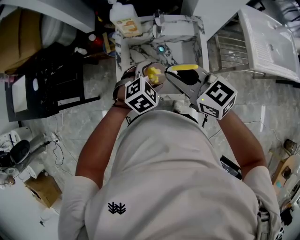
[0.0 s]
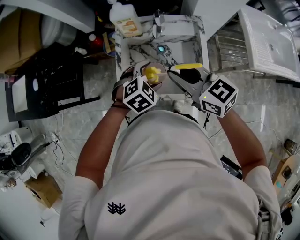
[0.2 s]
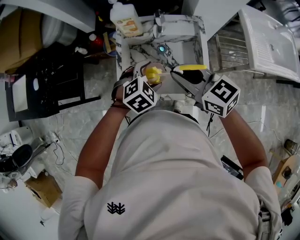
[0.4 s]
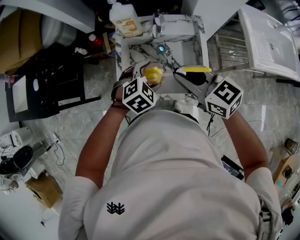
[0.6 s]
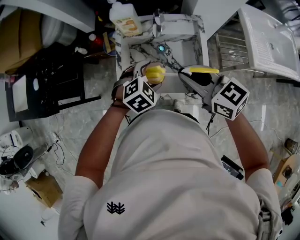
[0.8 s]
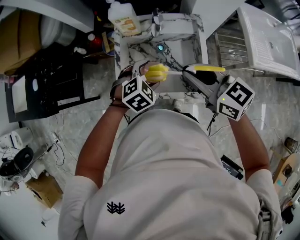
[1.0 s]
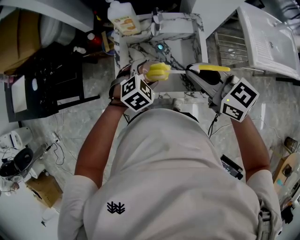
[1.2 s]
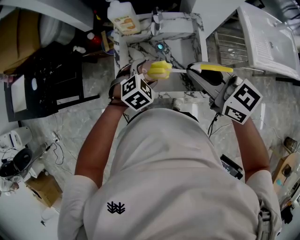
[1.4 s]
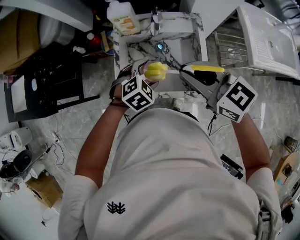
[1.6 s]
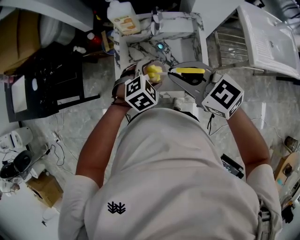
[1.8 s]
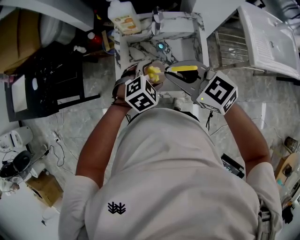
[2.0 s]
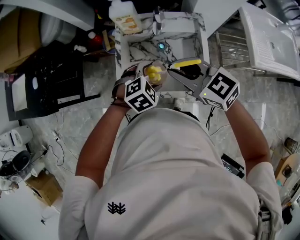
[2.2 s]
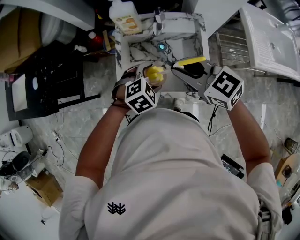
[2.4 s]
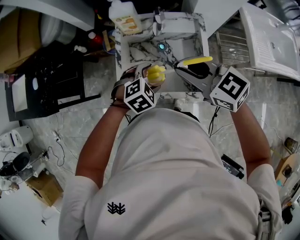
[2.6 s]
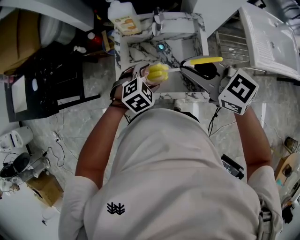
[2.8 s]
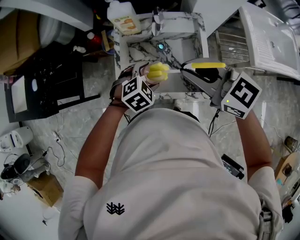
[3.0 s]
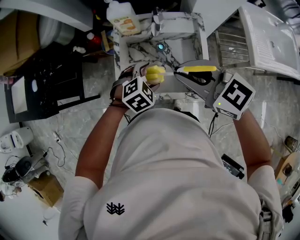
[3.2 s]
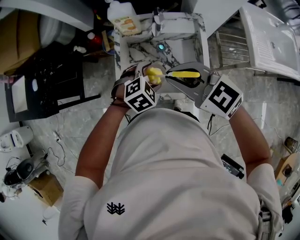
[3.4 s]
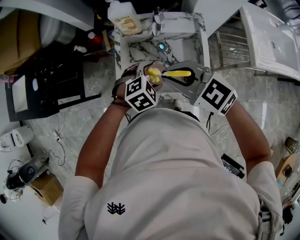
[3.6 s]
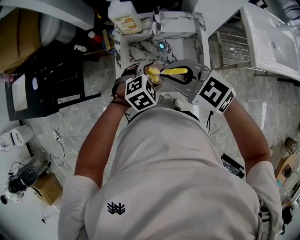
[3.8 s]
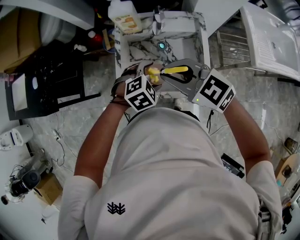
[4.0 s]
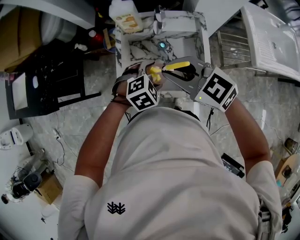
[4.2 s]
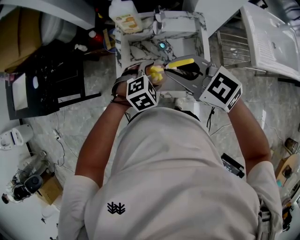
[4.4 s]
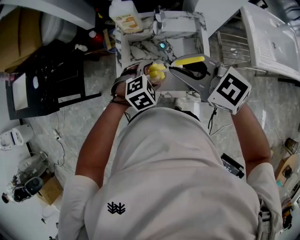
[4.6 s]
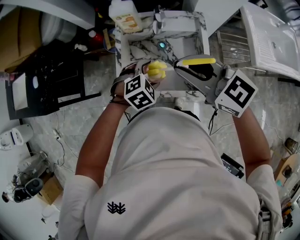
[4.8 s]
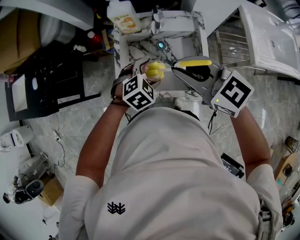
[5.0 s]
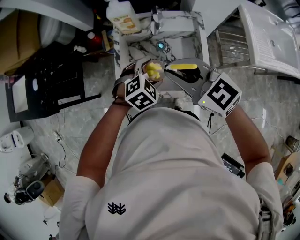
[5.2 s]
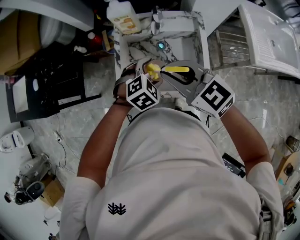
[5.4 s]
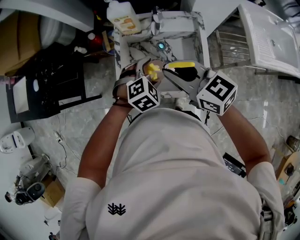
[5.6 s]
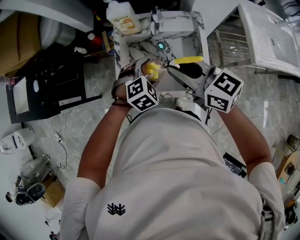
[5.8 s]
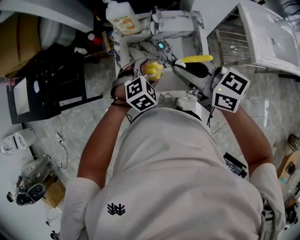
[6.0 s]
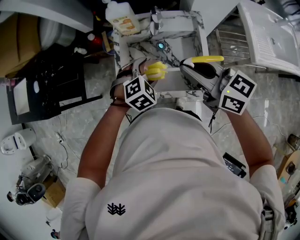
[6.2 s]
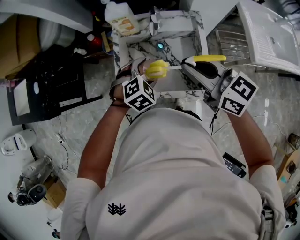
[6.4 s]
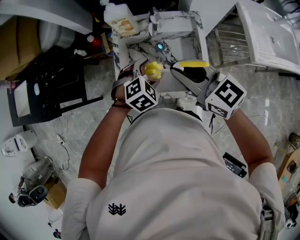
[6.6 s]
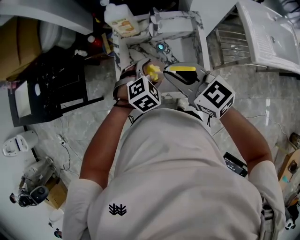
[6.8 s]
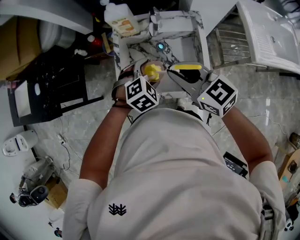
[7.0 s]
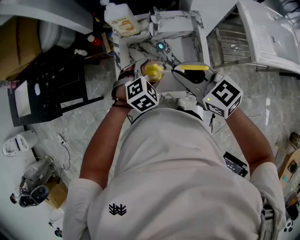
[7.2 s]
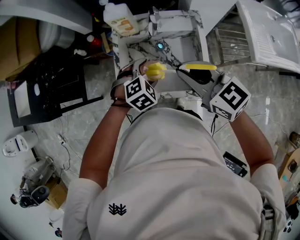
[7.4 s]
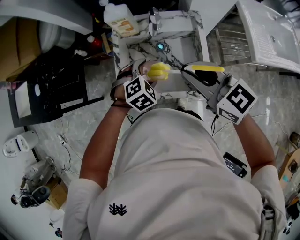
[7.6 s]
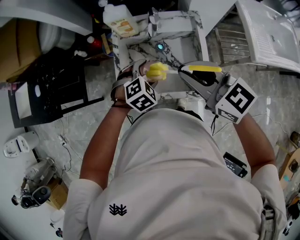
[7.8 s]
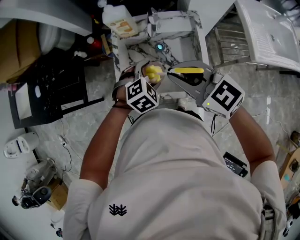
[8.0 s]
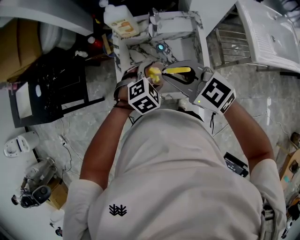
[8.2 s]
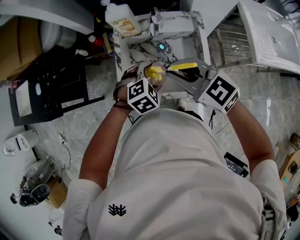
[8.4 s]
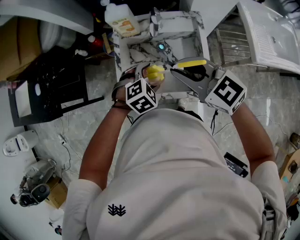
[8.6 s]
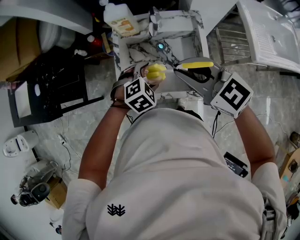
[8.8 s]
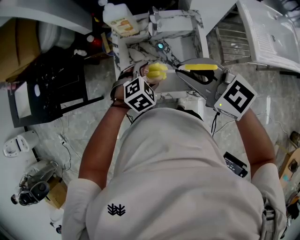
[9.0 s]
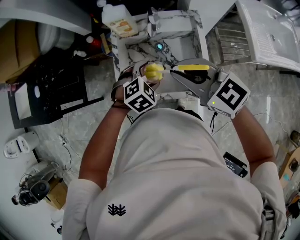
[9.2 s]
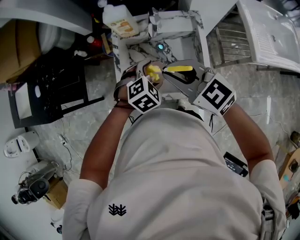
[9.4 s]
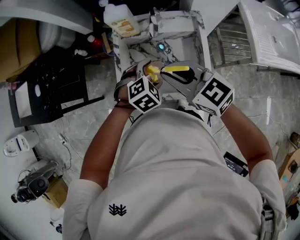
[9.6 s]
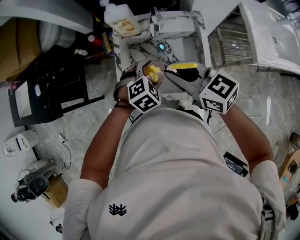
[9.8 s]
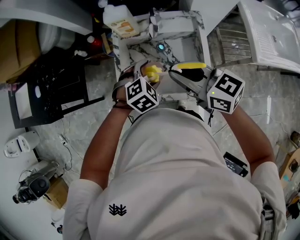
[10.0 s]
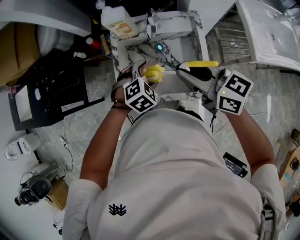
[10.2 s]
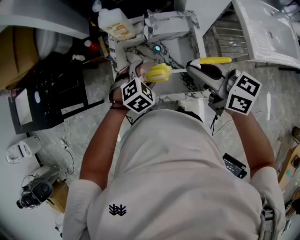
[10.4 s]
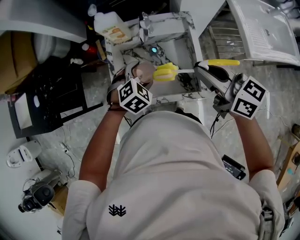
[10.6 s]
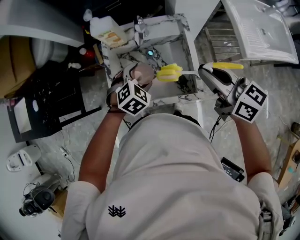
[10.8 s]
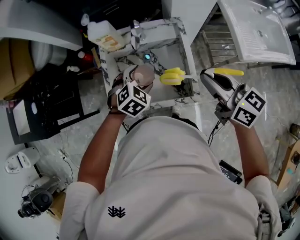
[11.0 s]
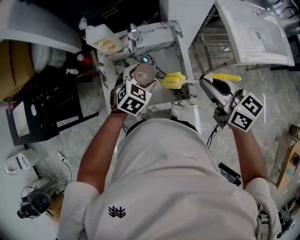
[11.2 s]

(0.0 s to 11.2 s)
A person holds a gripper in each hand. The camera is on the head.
0.0 s - 1.6 s: The right gripper shifts by approximately 5 cm.
1.6 s - 3.2 s: There are only small adjustments of the grippers.
3.2 s - 4.8 s: There are only small adjustments of the grippers.
4.8 s - 6.4 s: The right gripper turns by roughly 20 degrees.
6.4 s - 8.0 s: The right gripper swivels approximately 20 degrees.
8.0 s - 9.6 s: The grippers stay close to where they were, moving slightly.
9.6 s - 11.2 s: The left gripper travels to the right by some 5 cm; the right gripper heads to the right, covering approximately 20 cm, and turns by some 30 degrees.

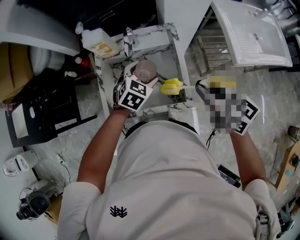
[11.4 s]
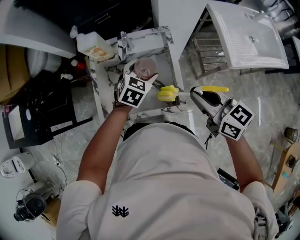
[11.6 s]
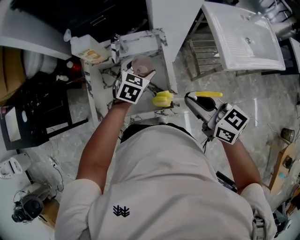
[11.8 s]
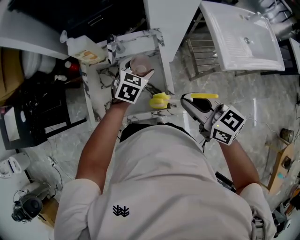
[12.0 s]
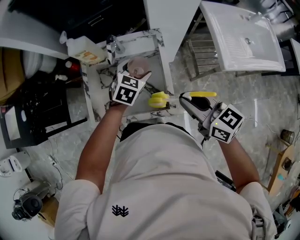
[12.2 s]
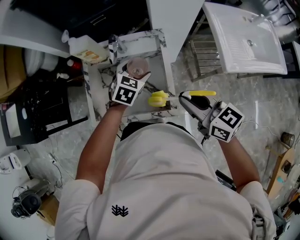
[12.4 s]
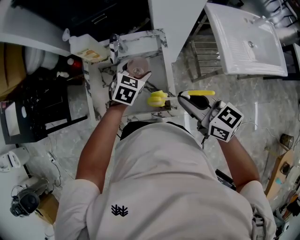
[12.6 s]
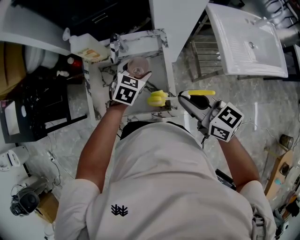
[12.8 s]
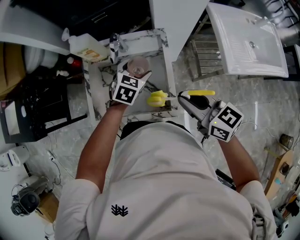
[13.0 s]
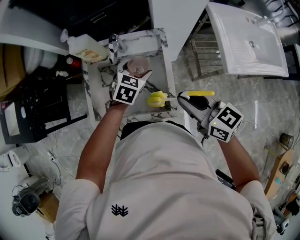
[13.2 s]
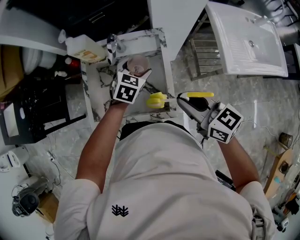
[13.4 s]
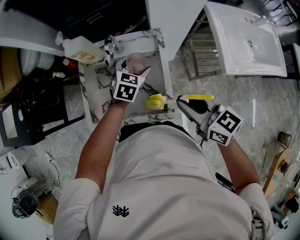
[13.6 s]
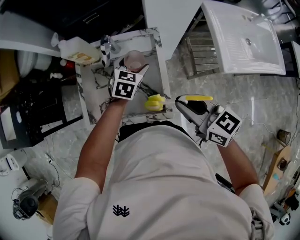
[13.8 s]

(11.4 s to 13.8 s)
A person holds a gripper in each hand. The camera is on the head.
11.4 s - 12.6 s: The left gripper shifts by about 5 cm.
12.6 s - 13.8 s: The grippers move only a little.

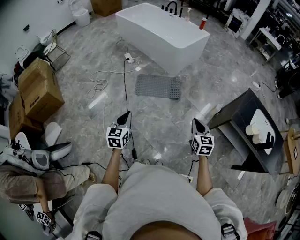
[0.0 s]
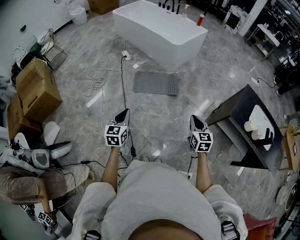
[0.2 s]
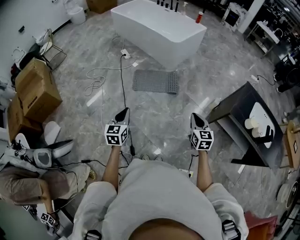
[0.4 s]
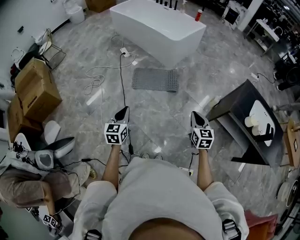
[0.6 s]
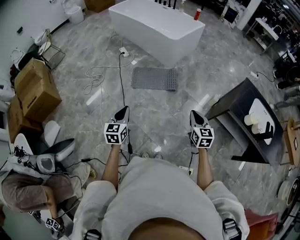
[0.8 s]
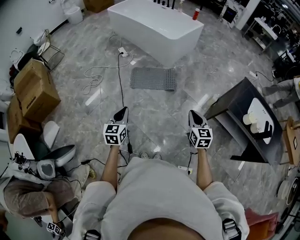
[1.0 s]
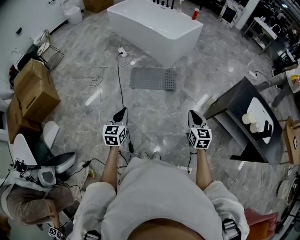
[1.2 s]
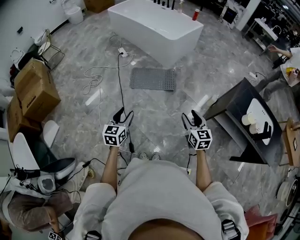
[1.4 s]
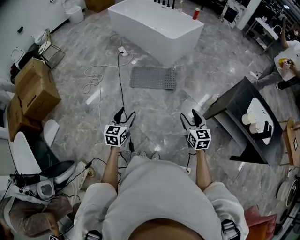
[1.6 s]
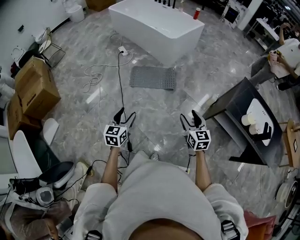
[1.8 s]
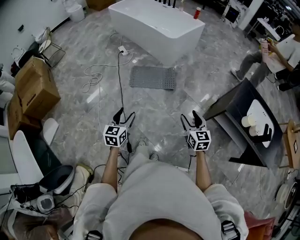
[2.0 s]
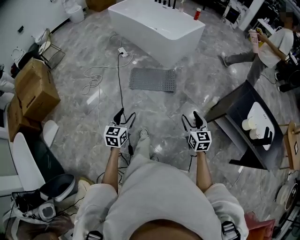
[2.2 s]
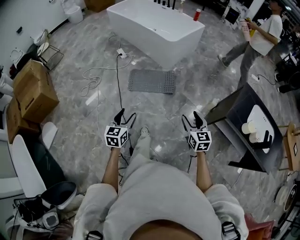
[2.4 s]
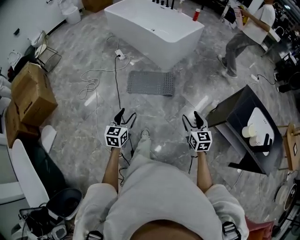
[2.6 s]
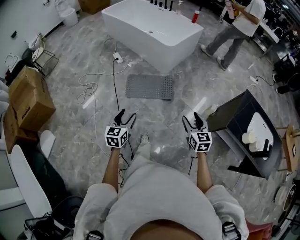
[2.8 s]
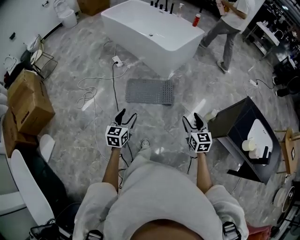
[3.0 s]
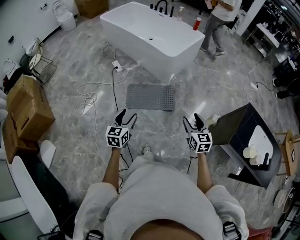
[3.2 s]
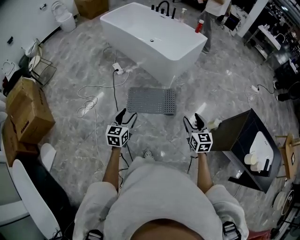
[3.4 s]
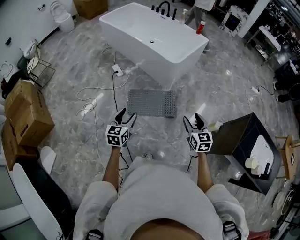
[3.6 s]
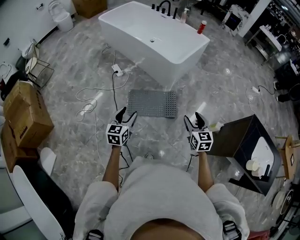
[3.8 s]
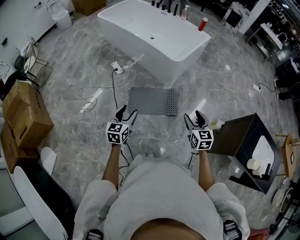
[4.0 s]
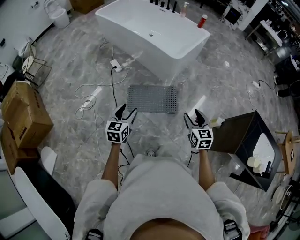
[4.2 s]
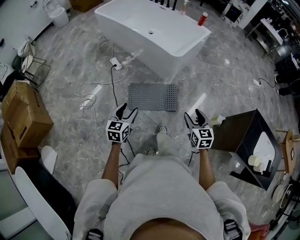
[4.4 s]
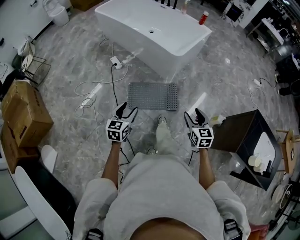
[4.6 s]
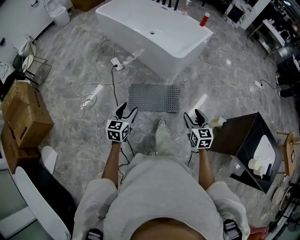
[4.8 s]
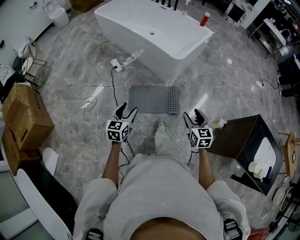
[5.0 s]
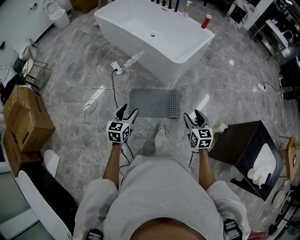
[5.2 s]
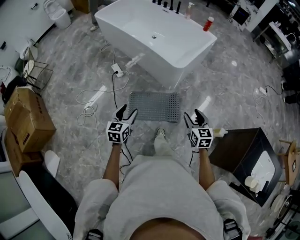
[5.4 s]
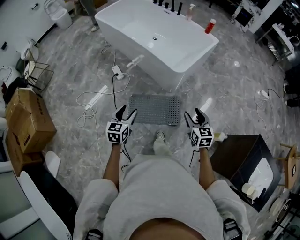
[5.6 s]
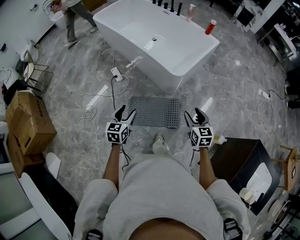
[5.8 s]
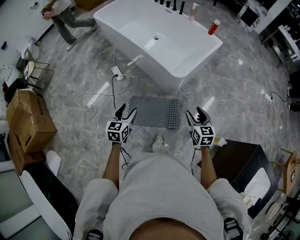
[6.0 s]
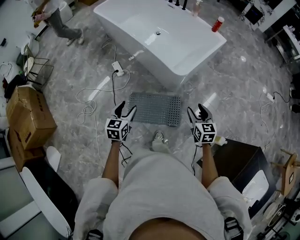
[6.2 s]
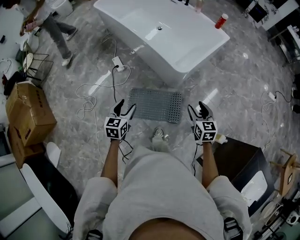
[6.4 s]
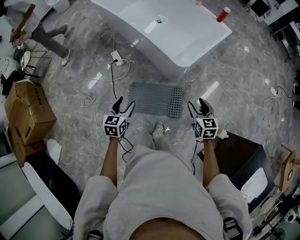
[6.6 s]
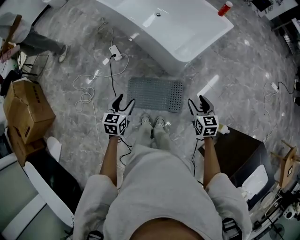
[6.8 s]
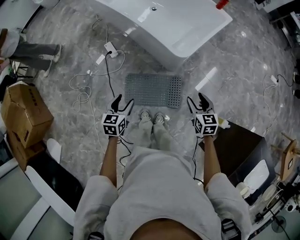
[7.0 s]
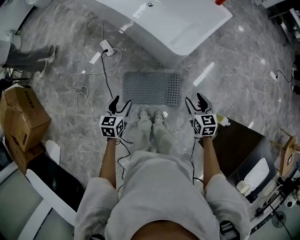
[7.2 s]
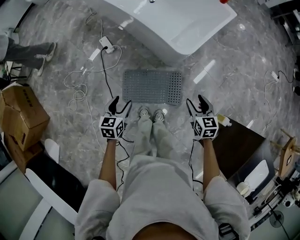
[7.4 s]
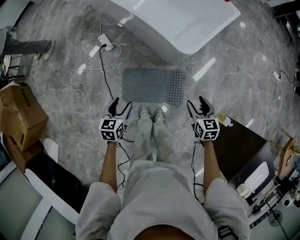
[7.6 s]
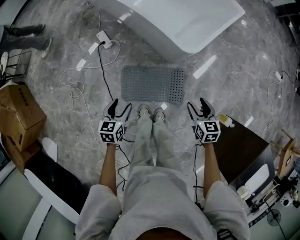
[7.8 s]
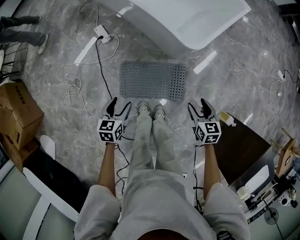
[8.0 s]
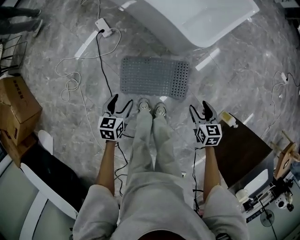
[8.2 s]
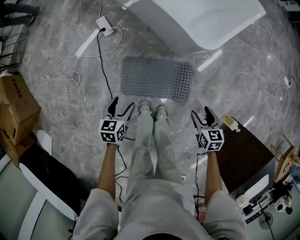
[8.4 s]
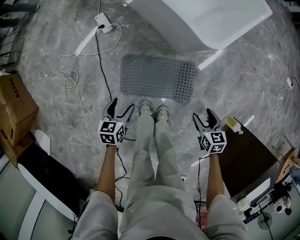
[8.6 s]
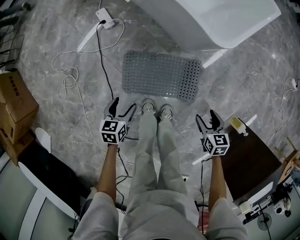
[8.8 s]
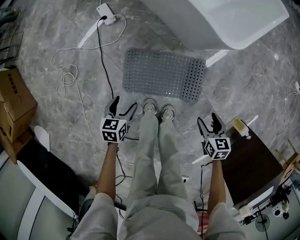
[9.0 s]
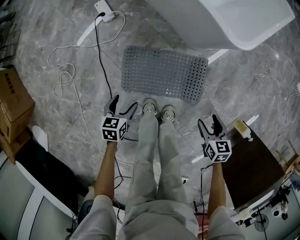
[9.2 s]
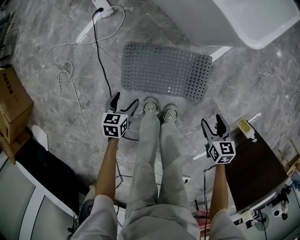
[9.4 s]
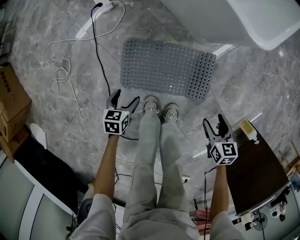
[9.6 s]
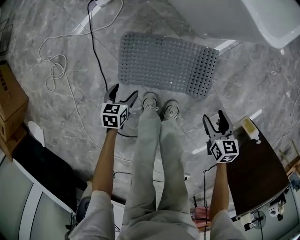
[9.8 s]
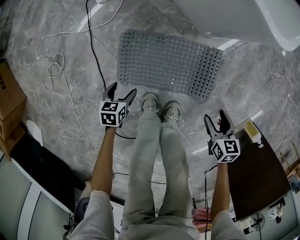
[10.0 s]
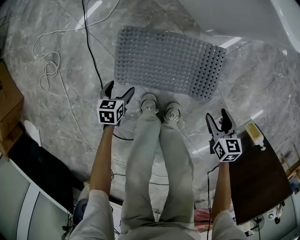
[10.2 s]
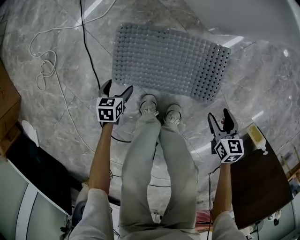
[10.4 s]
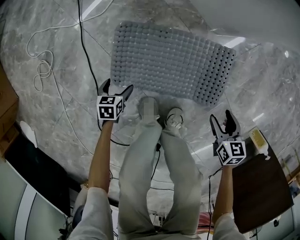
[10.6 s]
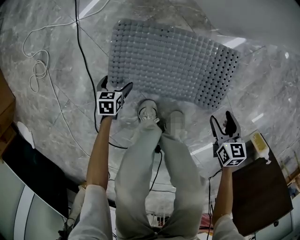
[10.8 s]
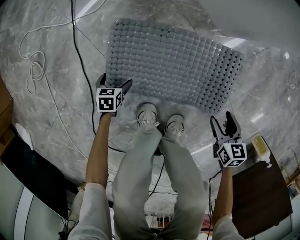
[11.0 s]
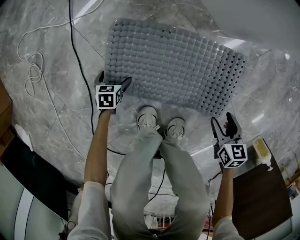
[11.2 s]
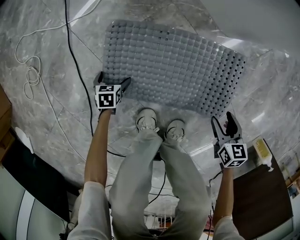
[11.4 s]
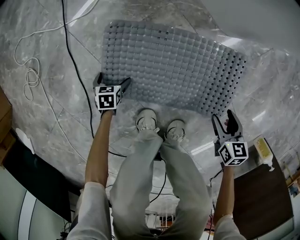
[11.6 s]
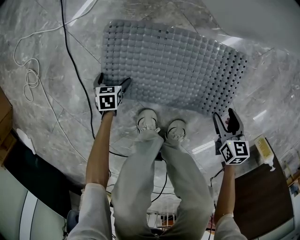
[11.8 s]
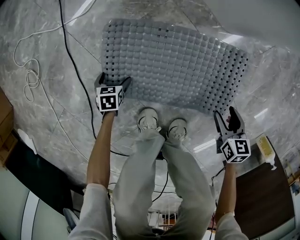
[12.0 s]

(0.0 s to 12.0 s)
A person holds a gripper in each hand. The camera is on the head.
0.0 s - 1.6 s: The right gripper opens its fingers; the left gripper heads to the right, covering roughly 5 cm, and opens up.
1.6 s - 3.0 s: The grippers both shift forward by about 20 cm.
3.0 s - 4.4 s: Both grippers move forward and to the left, roughly 20 cm.
4.4 s - 6.0 s: Both grippers travel together forward, roughly 25 cm.
6.0 s - 7.6 s: The right gripper heads downward and forward, covering about 15 cm; the left gripper travels downward by approximately 15 cm.
7.6 s - 9.0 s: Both grippers travel together downward, some 25 cm.
9.0 s - 10.4 s: Both grippers move downward, roughly 25 cm.
10.4 s - 12.0 s: The two grippers go about 15 cm downward.
